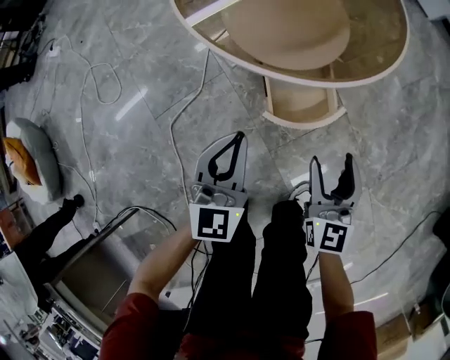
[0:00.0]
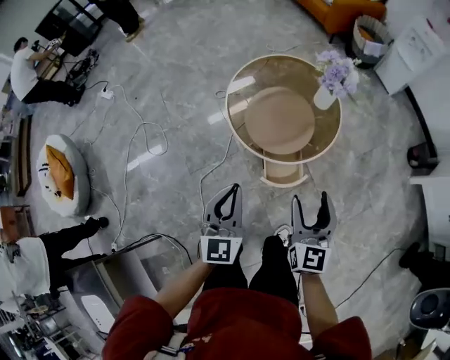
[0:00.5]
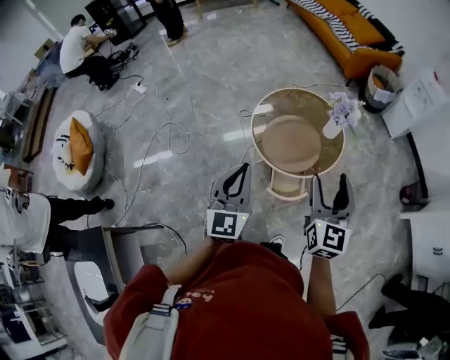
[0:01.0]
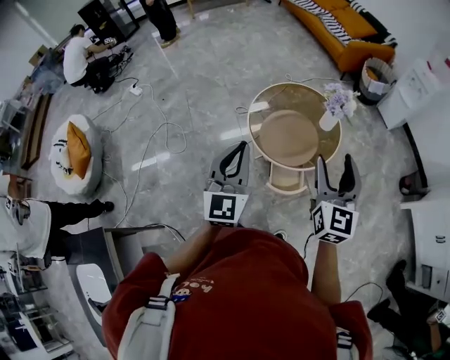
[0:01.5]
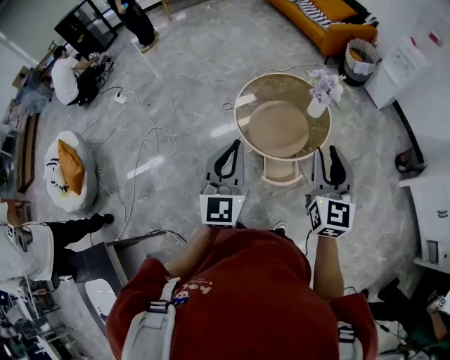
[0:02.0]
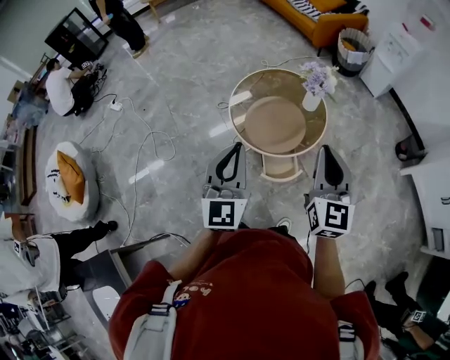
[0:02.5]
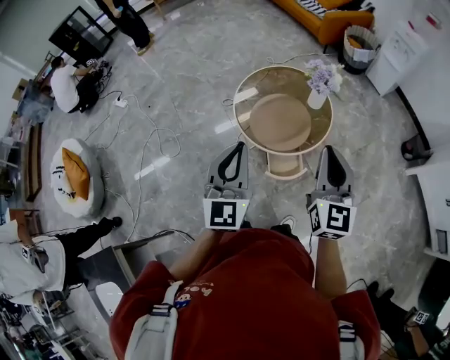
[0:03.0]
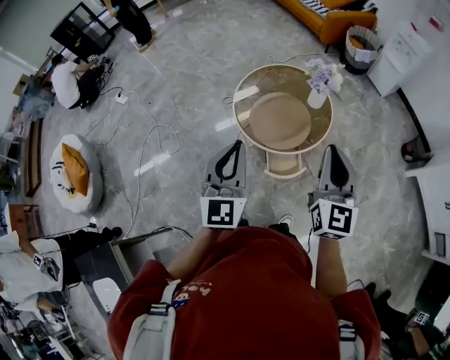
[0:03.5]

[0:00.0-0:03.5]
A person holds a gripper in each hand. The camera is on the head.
0:00.0 to 0:02.0: The two grippers go roughly 60 cm upward. The right gripper closes.
0:02.0 to 0:03.5: The right gripper closes up.

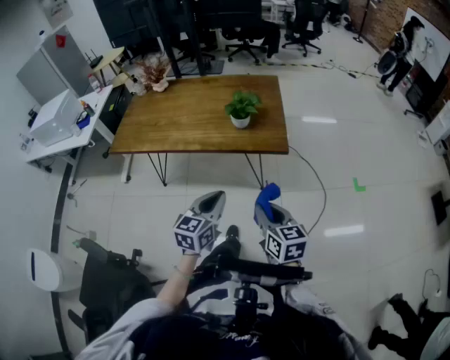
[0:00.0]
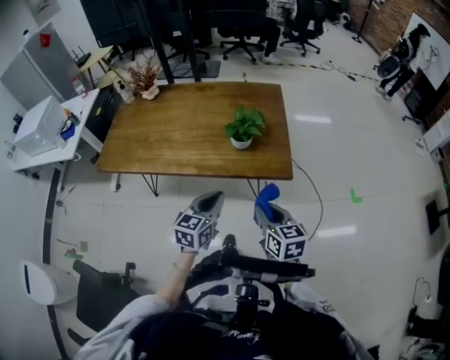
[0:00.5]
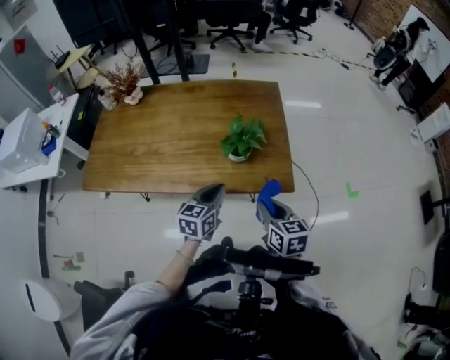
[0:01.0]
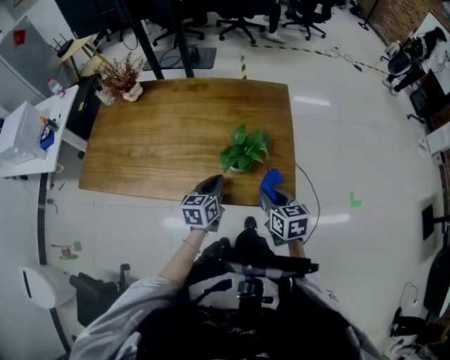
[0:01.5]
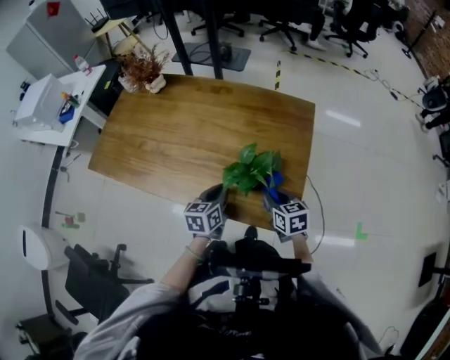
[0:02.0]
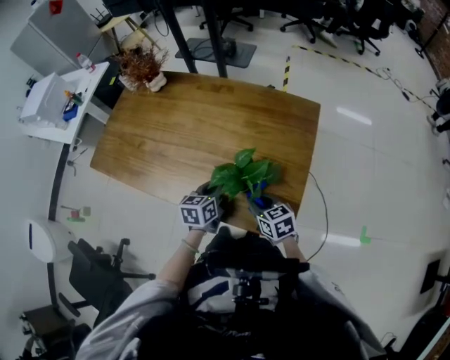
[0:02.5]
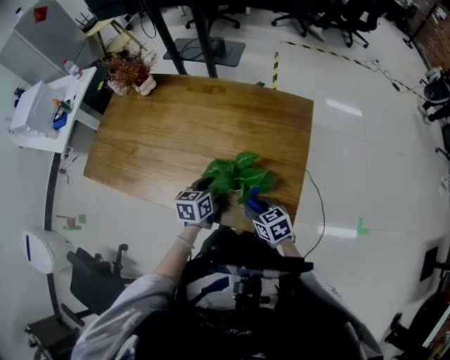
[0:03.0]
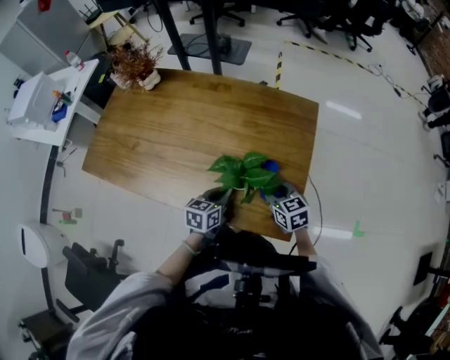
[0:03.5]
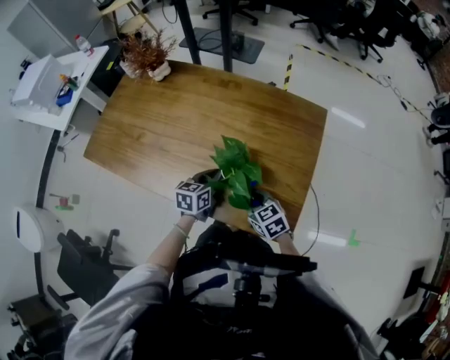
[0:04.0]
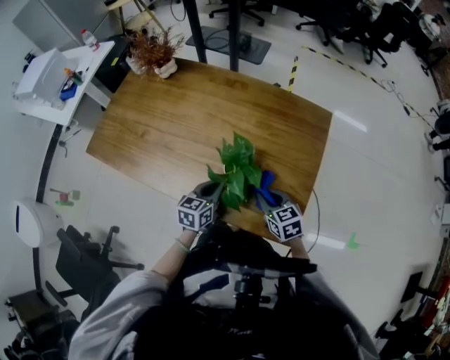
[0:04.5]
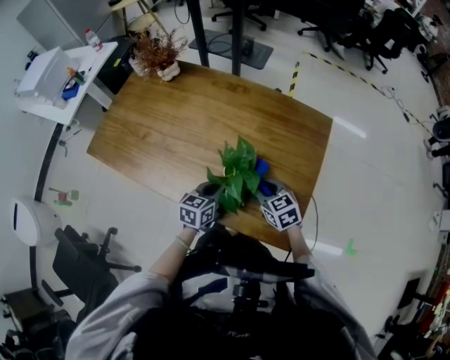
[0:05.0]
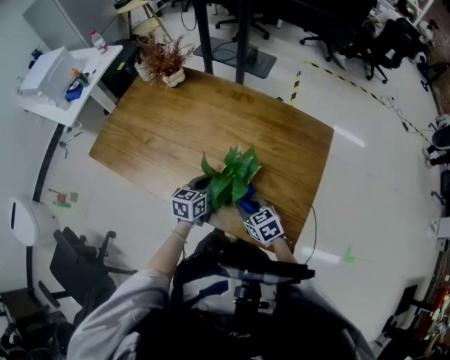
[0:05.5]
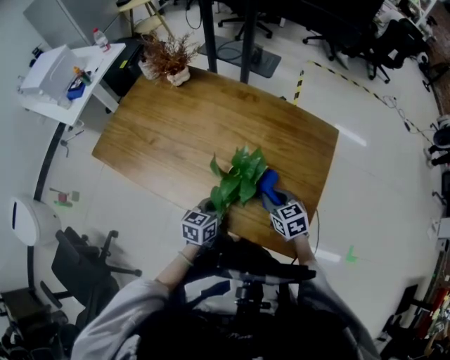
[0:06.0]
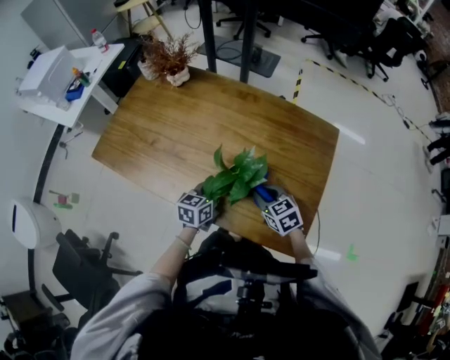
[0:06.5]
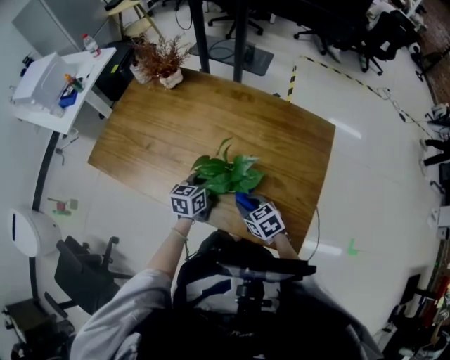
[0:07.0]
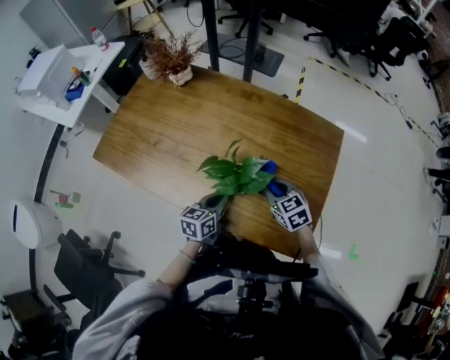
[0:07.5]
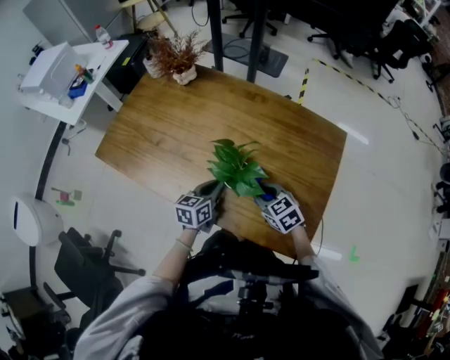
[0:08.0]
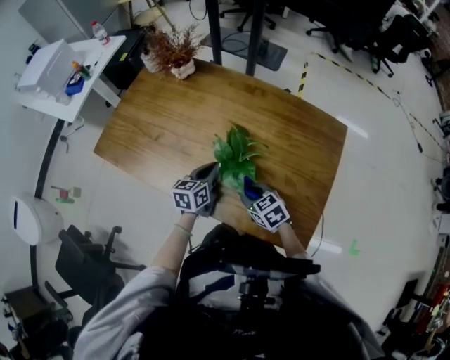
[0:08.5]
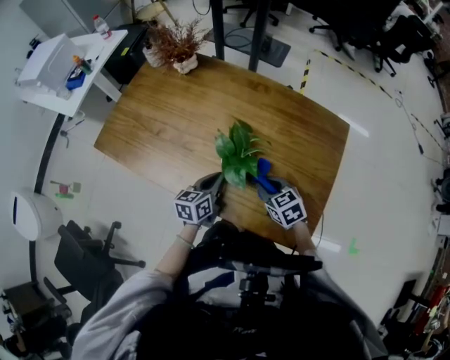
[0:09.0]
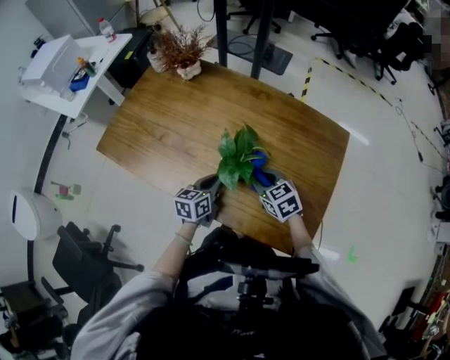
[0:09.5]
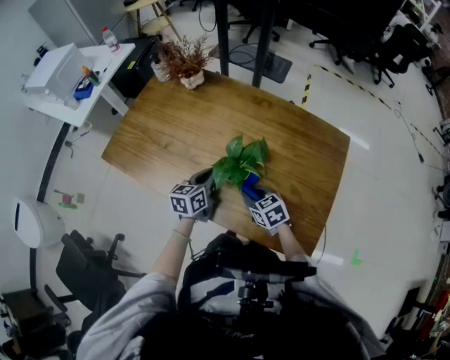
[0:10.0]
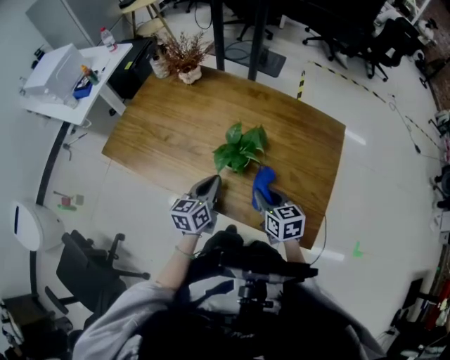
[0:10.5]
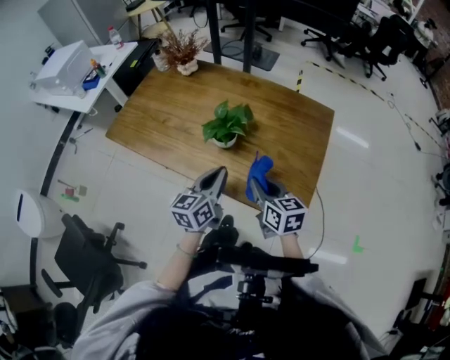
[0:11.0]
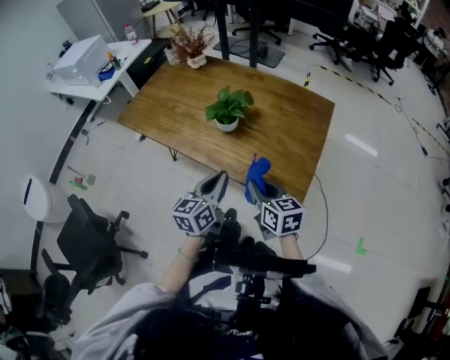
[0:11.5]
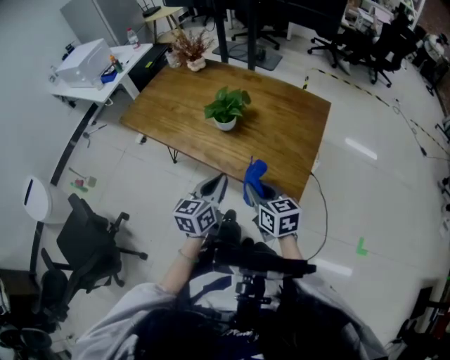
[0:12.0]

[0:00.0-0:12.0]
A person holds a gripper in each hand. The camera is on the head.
0:00.0 to 0:02.0: Both grippers move forward, approximately 40 cm. The right gripper rotates roughly 20 degrees; the left gripper turns by about 30 degrees.
0:02.0 to 0:04.0: The right gripper swings left and right, about 10 cm each way, with 2 reversals, and rotates some 20 degrees, while the left gripper moves forward and backward over approximately 5 cm, changing direction 2 times.
0:04.0 to 0:06.0: The right gripper goes left and right, about 10 cm each way, reversing 2 times; the left gripper swings forward and backward, approximately 5 cm each way, with 2 reversals.
0:06.0 to 0:08.0: The right gripper moves left and right over some 10 cm, changing direction 2 times; the left gripper goes forward and backward, approximately 10 cm each way, reversing 2 times.
0:08.0 to 0:10.0: The right gripper moves left and right over approximately 5 cm, changing direction 2 times, while the left gripper moves forward and backward over about 5 cm, changing direction 2 times.
0:10.0 to 0:12.0: The right gripper heads backward and upward, covering about 25 cm, and changes its angle by roughly 30 degrees. The left gripper heads backward, covering roughly 30 cm.

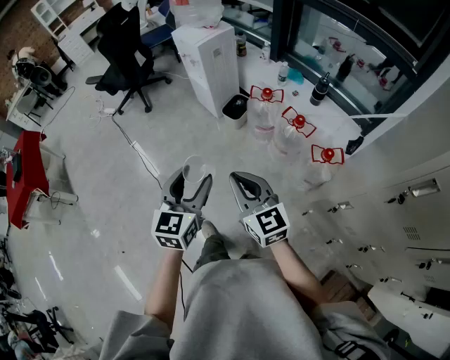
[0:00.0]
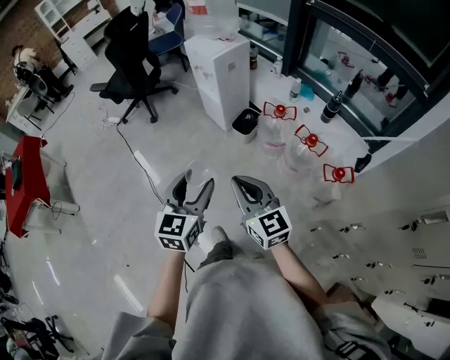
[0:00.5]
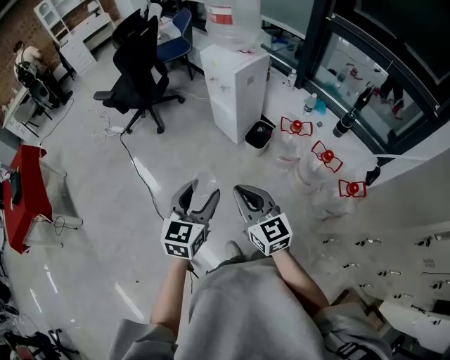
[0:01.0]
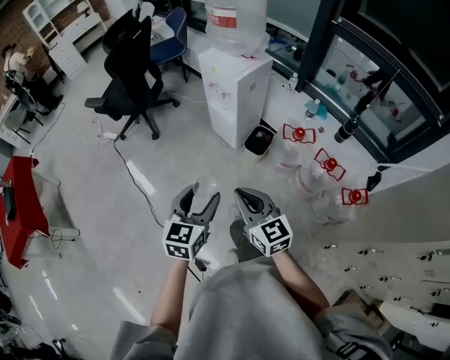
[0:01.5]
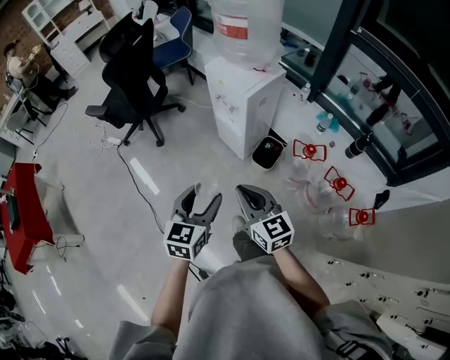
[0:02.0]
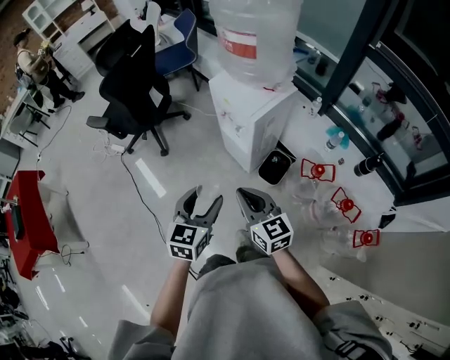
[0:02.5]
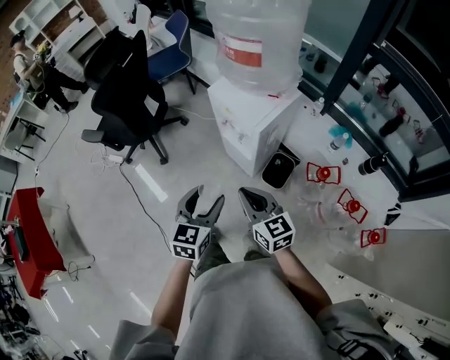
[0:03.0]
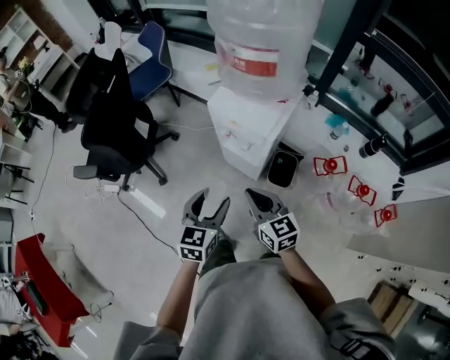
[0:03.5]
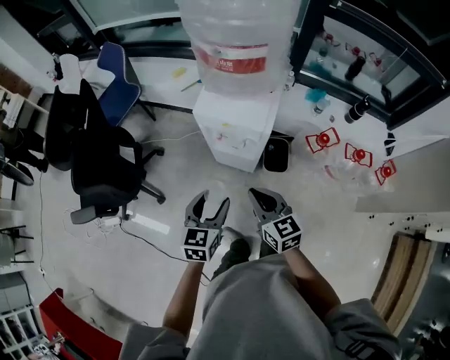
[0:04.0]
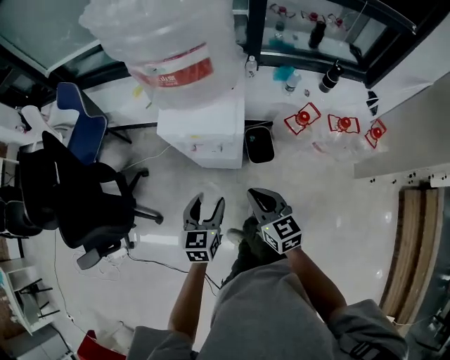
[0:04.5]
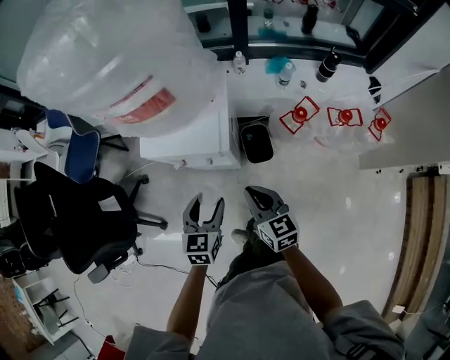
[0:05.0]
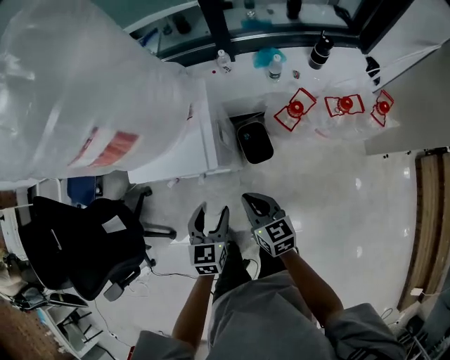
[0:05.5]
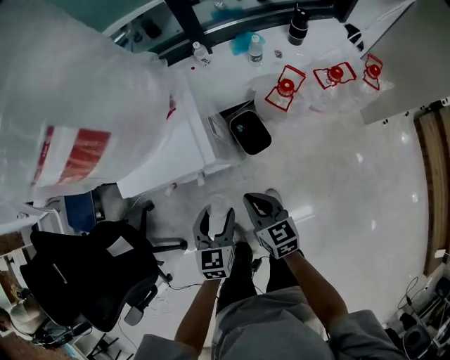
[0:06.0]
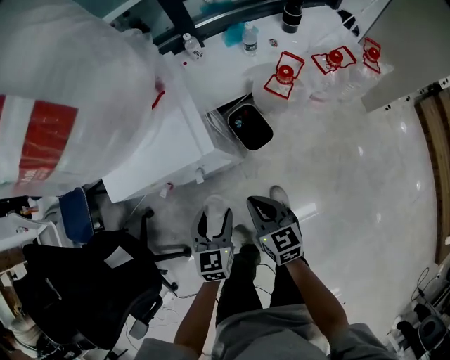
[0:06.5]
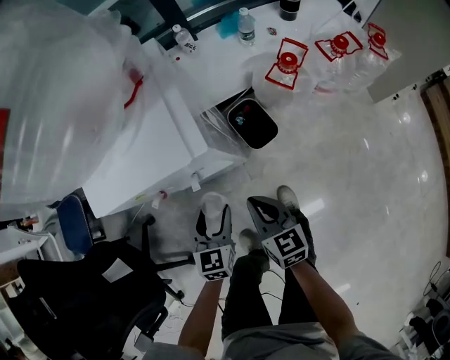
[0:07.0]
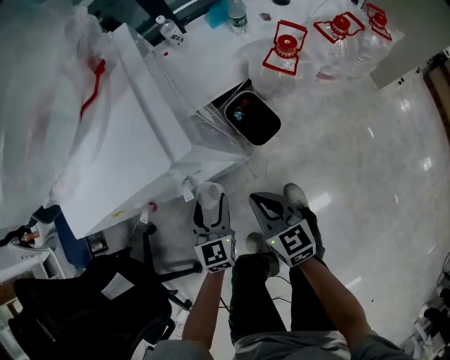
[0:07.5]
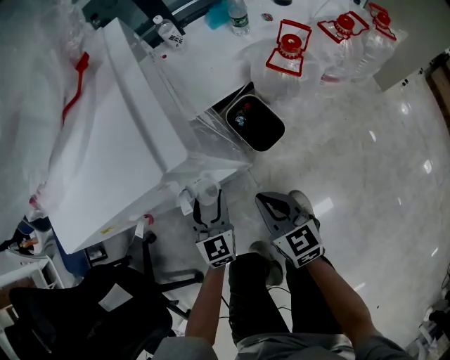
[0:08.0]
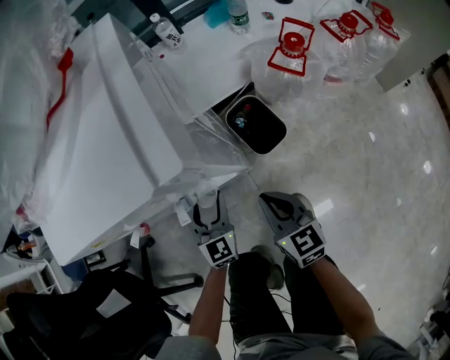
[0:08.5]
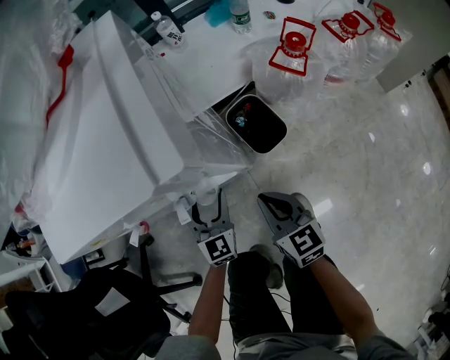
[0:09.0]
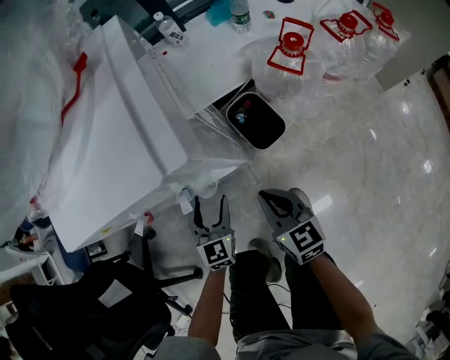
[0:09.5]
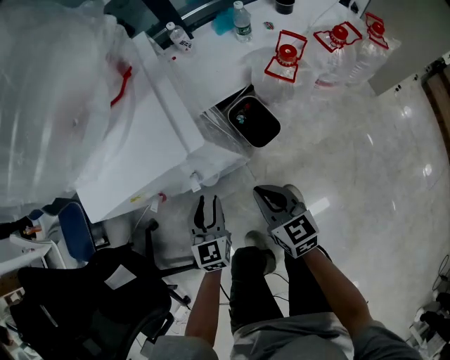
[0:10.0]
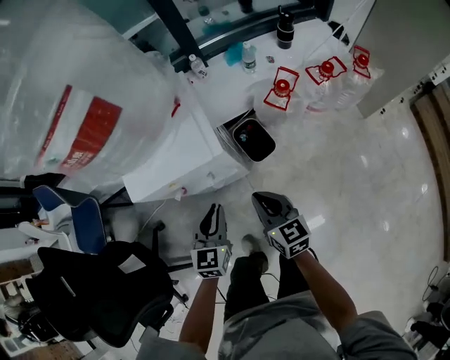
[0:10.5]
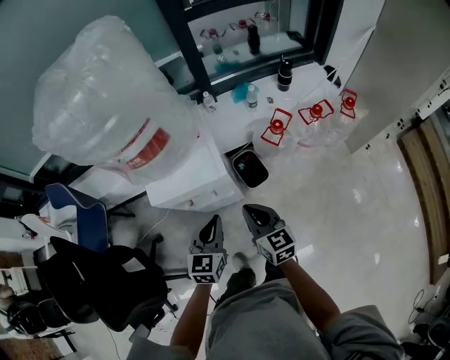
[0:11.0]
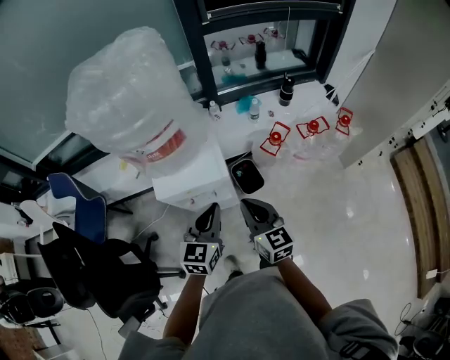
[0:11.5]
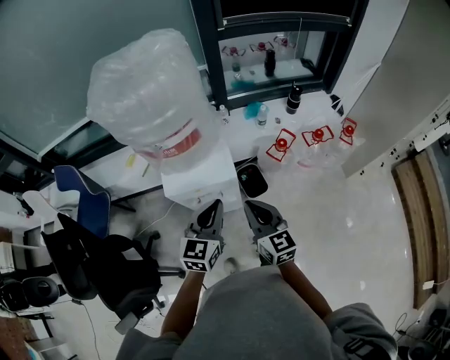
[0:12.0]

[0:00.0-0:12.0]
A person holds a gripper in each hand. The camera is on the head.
0:00.0 to 0:02.0: Both grippers are carried forward and to the left, roughly 40 cm.
0:02.0 to 0:04.0: The left gripper ends up approximately 35 cm from where it was, and rotates roughly 30 degrees; the right gripper changes place by some 30 cm, and changes its angle by about 30 degrees.
0:04.0 to 0:06.0: The left gripper shifts by some 20 cm, and turns by about 30 degrees; the right gripper moves downward, some 15 cm, and rotates about 30 degrees.
0:06.0 to 0:08.0: The two grippers go approximately 25 cm downward.
0:08.0 to 0:10.0: Both grippers travel together upward, about 10 cm.
0:10.0 to 0:12.0: Both grippers move upward, about 40 cm. The left gripper closes.
